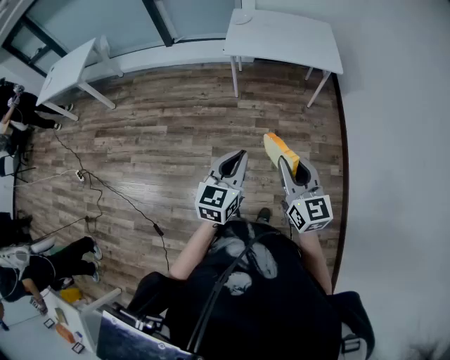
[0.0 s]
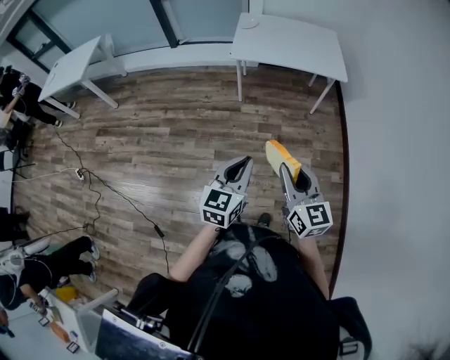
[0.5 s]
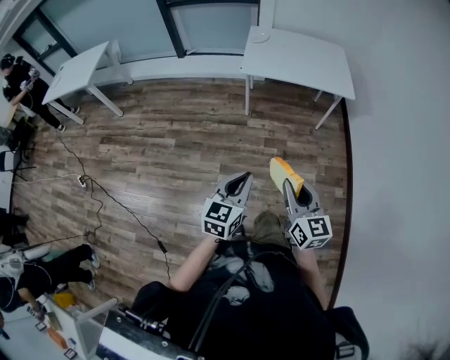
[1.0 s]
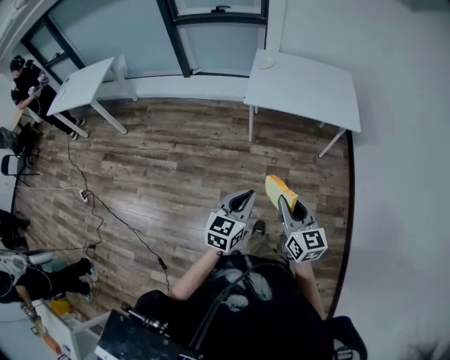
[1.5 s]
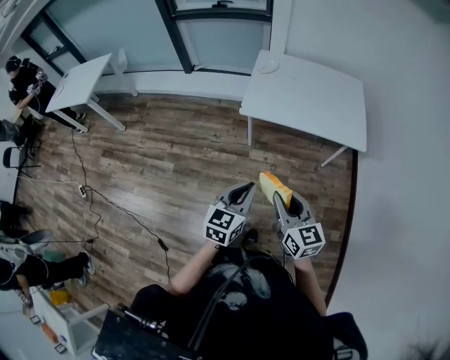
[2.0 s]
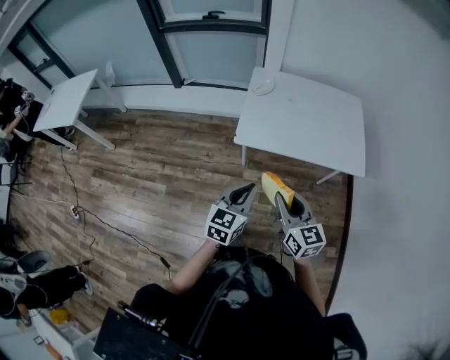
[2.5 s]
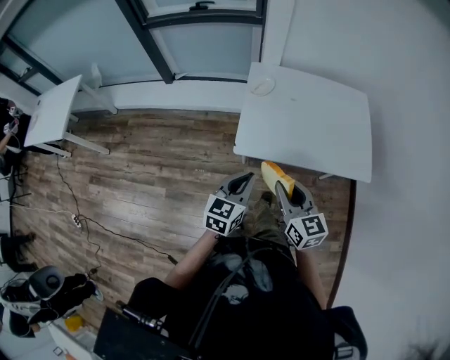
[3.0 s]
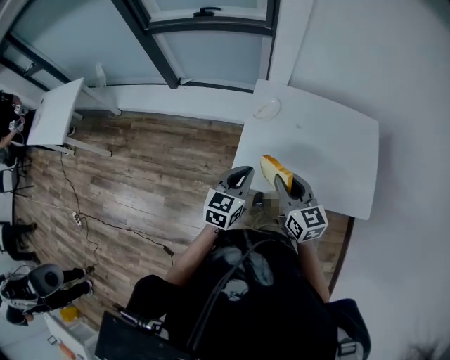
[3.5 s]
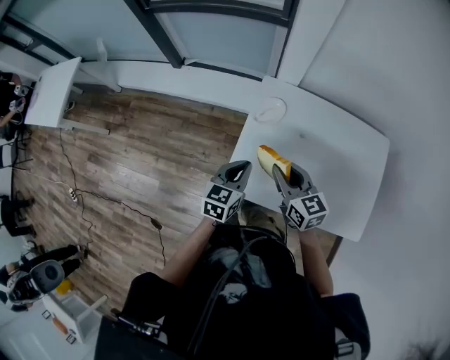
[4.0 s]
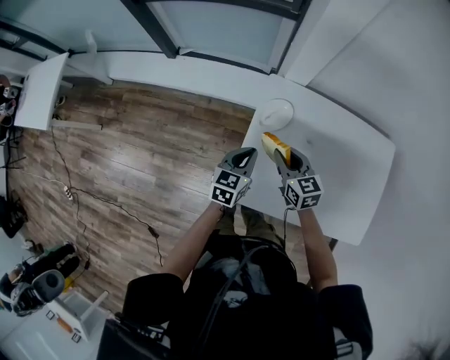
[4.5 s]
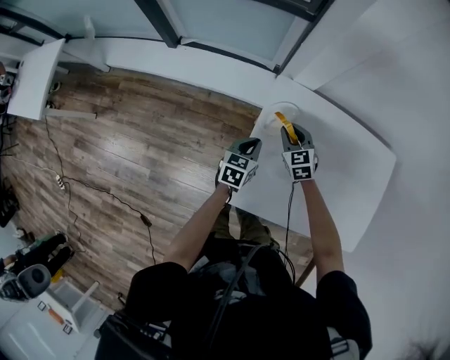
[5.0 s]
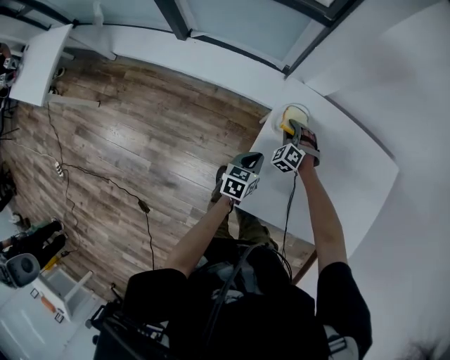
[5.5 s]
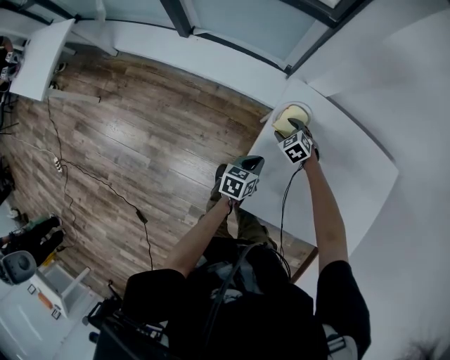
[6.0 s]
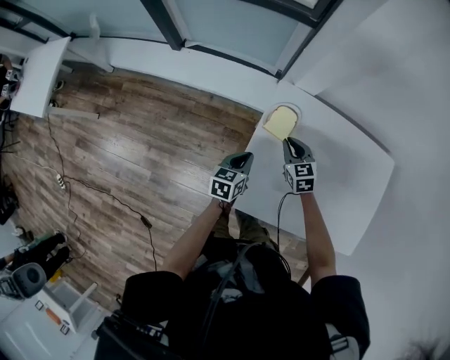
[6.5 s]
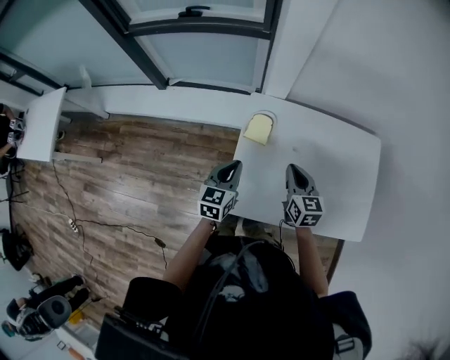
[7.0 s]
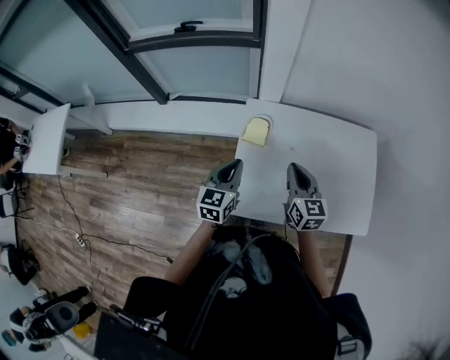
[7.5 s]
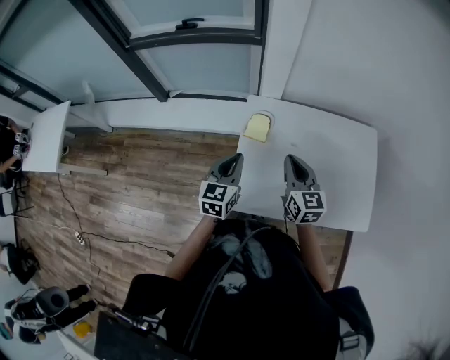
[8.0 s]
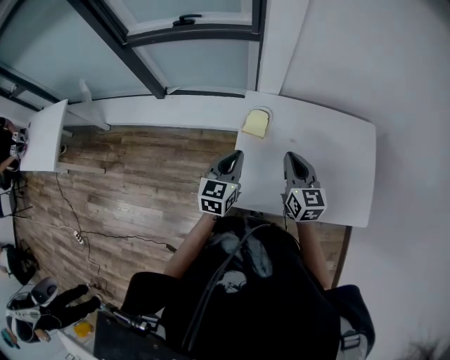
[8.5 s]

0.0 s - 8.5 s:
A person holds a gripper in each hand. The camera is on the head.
0.0 s - 2.0 s: Both grippers move forward, roughly 30 cm.
2.0 s - 4.0 s: The two grippers travel together, forward, some 60 cm.
4.0 s - 6.5 s: Both grippers travel together downward and forward, some 20 cm. The right gripper rotates some 30 degrees, and opens, then closes once more.
6.5 s - 8.5 s: The right gripper travels upward and backward by roughly 25 cm, and turns by approximately 30 degrees. Meanwhile the left gripper goes approximately 20 cm upward, and swivels approximately 30 degrees.

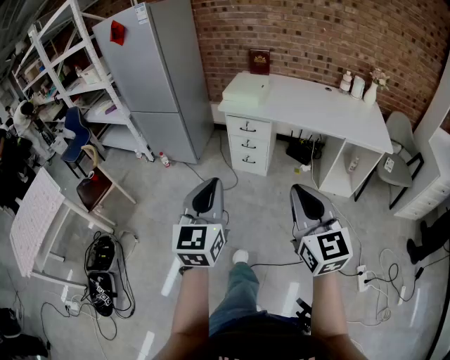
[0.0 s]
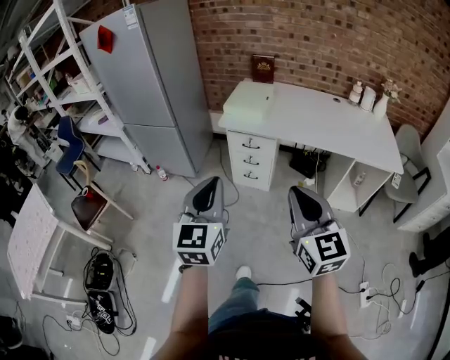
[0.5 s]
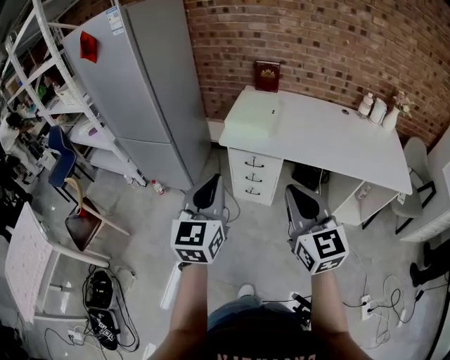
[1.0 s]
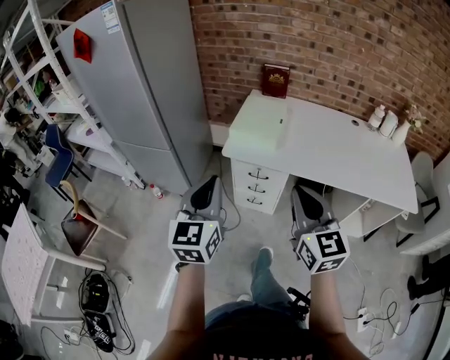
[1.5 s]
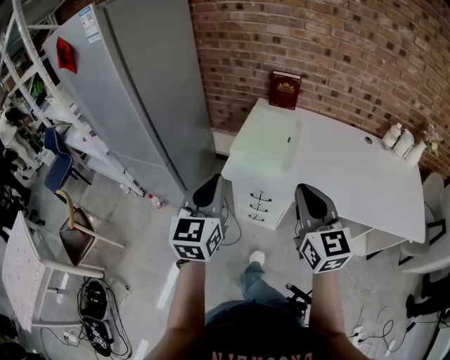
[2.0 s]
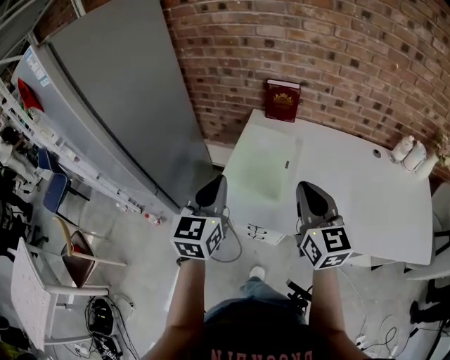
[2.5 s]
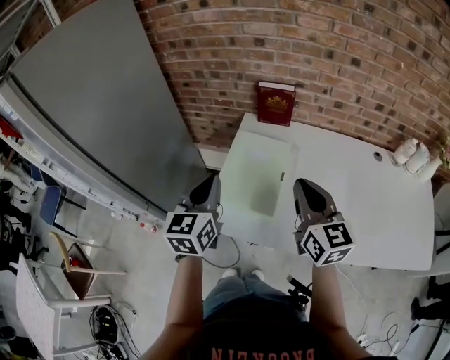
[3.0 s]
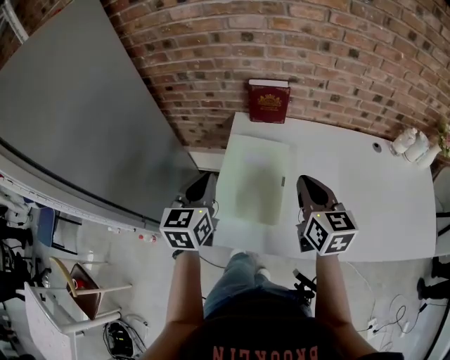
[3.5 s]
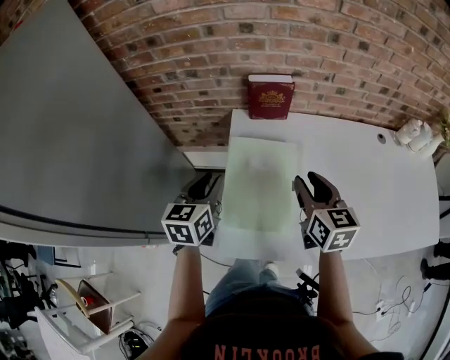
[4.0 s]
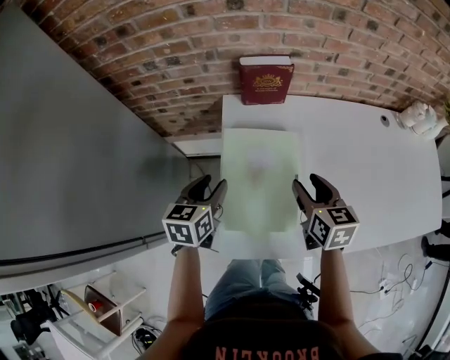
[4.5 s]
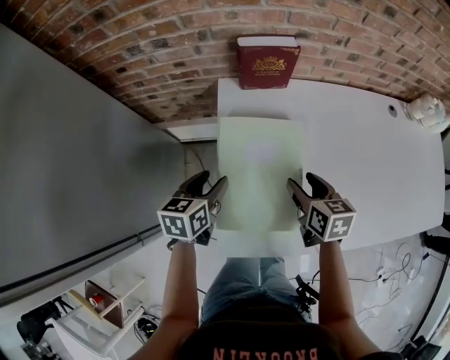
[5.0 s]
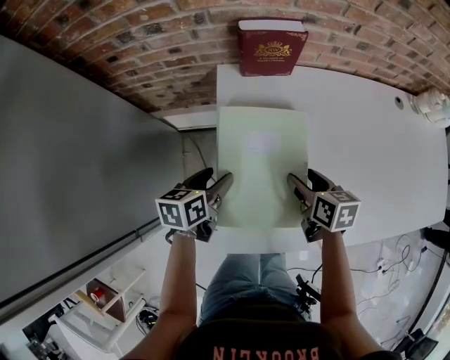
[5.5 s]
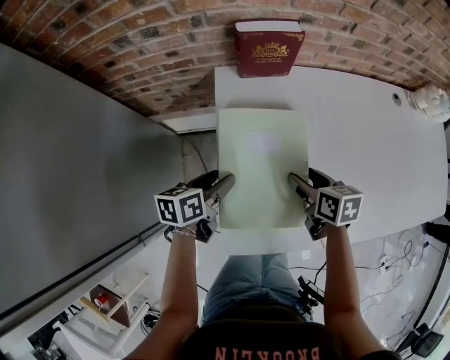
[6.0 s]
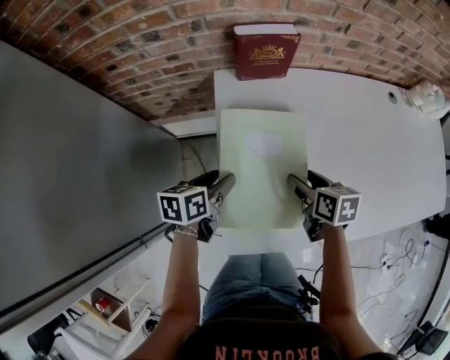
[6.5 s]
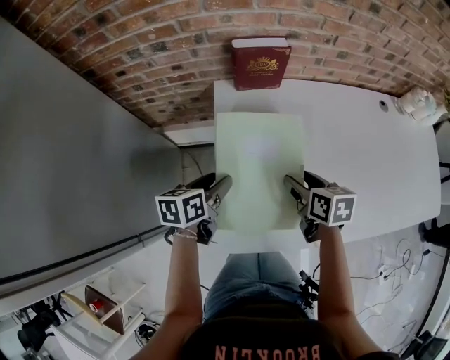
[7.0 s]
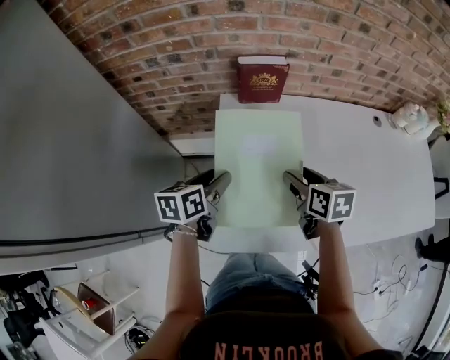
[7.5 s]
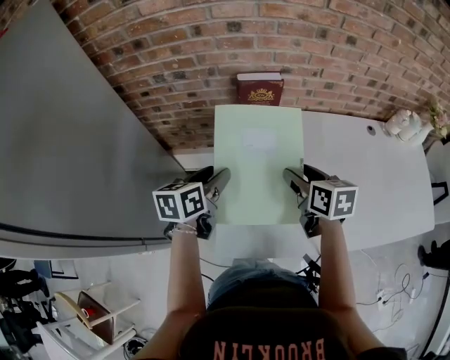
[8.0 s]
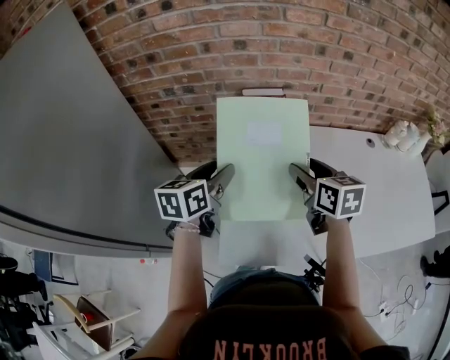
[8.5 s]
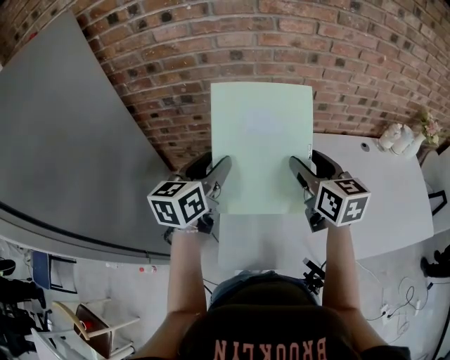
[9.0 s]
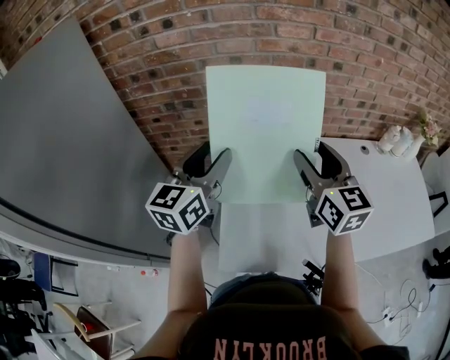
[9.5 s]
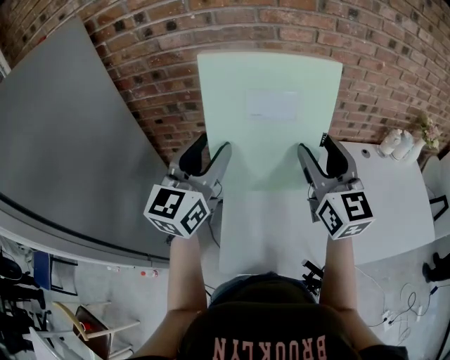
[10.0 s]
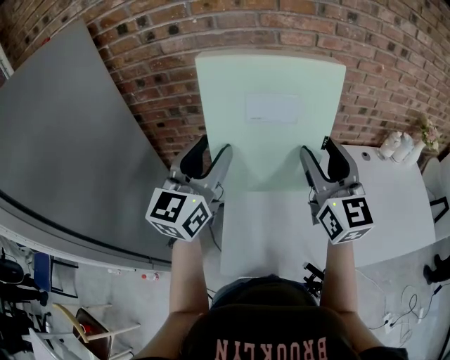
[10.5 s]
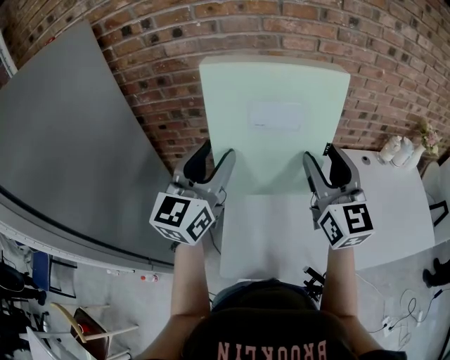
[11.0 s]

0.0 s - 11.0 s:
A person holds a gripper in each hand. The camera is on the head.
0.0 s - 2.0 s: Both grippers are carried forward, approximately 60 cm.
2.0 s - 3.5 s: Both grippers move forward, about 35 cm. The right gripper changes its angle by approximately 20 degrees.
3.5 s - 5.5 s: Both grippers move downward, roughly 20 cm. The left gripper rotates roughly 40 degrees, and opens its fingers. The right gripper turns by roughly 40 degrees, and opens.
5.5 s - 7.5 s: Both grippers travel together upward, some 10 cm.
7.5 s - 9.0 s: Both grippers move upward, roughly 20 cm. The left gripper rotates some 30 degrees. Meanwhile the right gripper swivels roughly 30 degrees.
9.0 s - 11.0 s: The two grippers go some 10 cm upward. The left gripper rotates approximately 30 degrees; the right gripper rotates some 30 degrees.

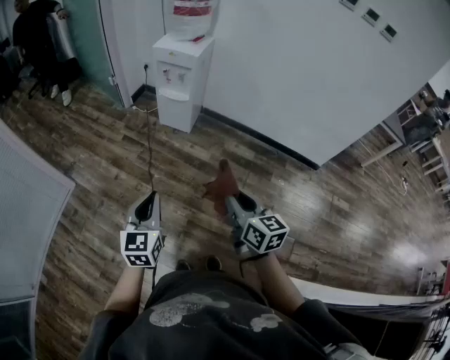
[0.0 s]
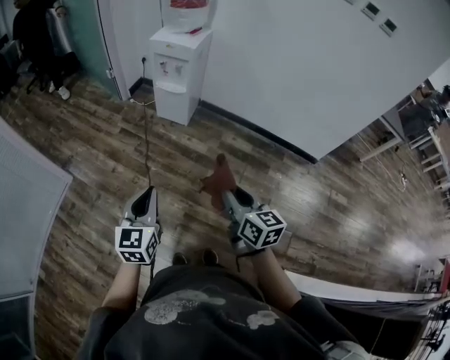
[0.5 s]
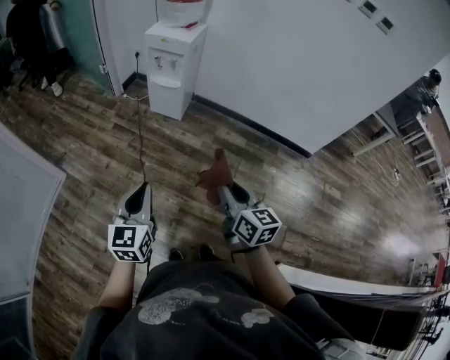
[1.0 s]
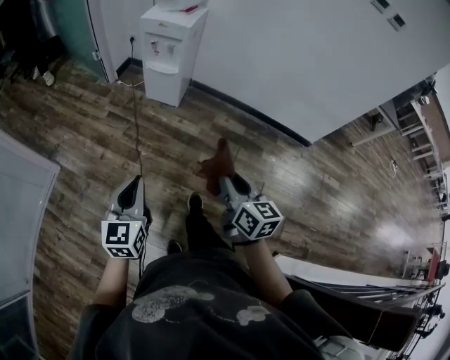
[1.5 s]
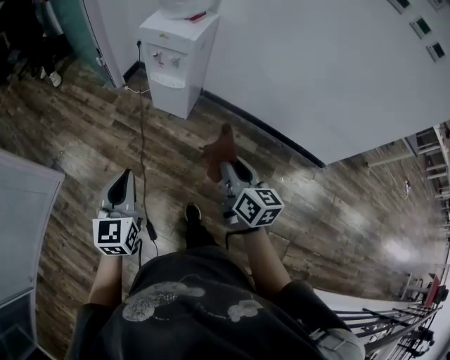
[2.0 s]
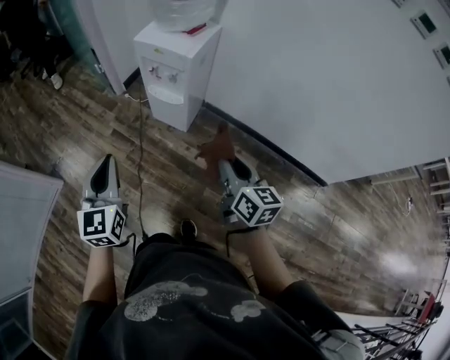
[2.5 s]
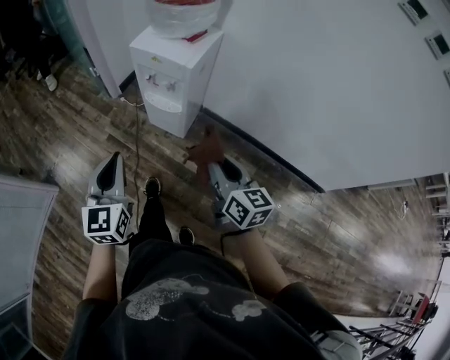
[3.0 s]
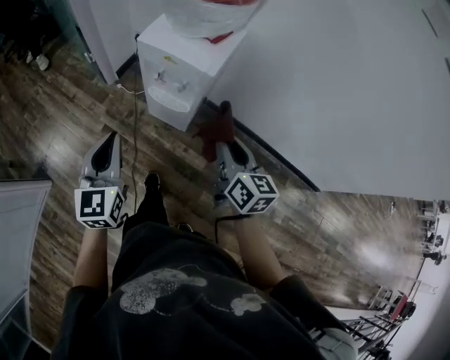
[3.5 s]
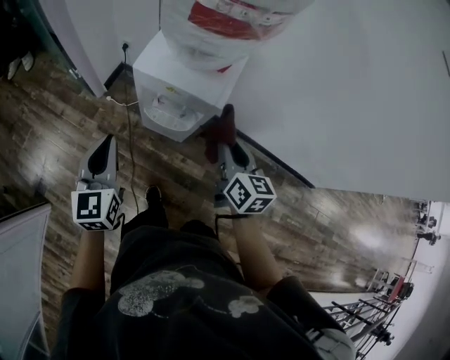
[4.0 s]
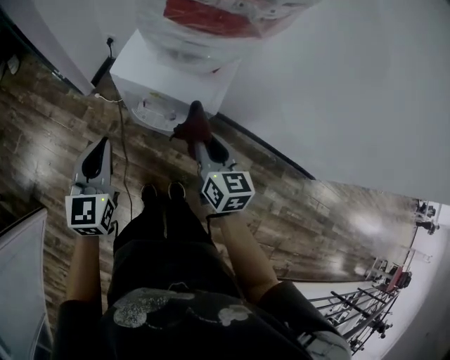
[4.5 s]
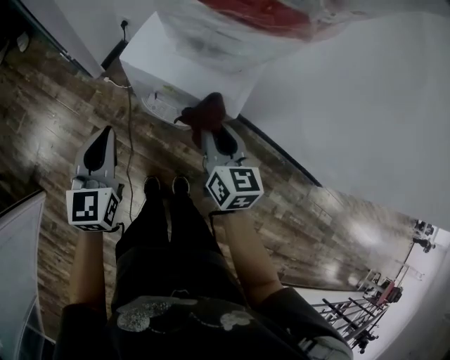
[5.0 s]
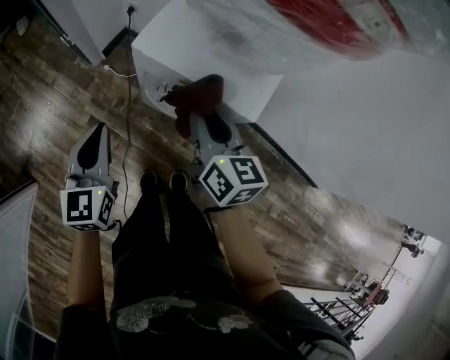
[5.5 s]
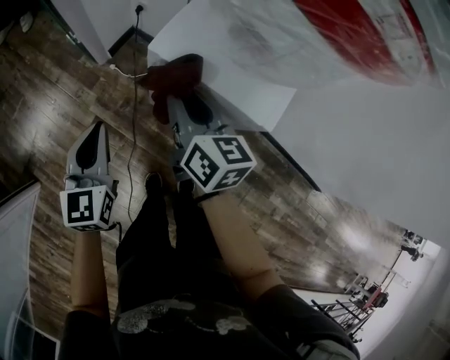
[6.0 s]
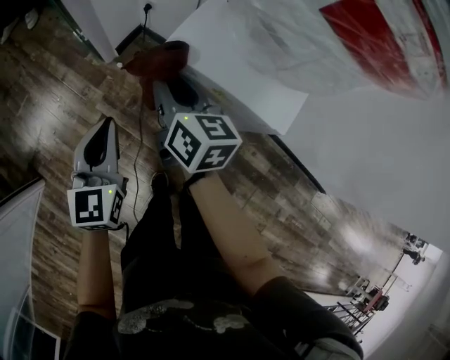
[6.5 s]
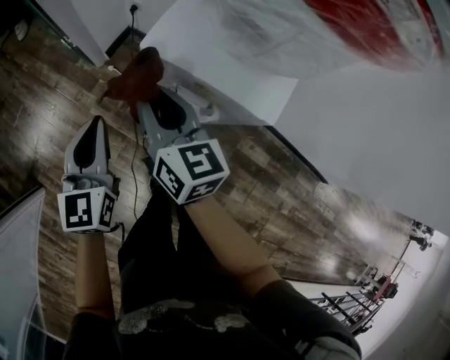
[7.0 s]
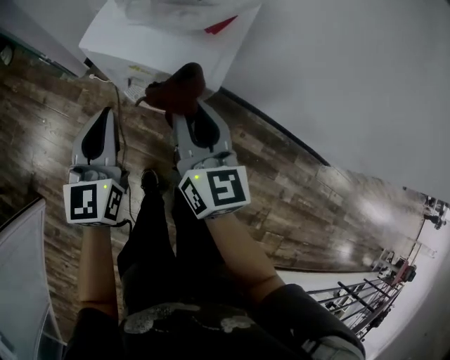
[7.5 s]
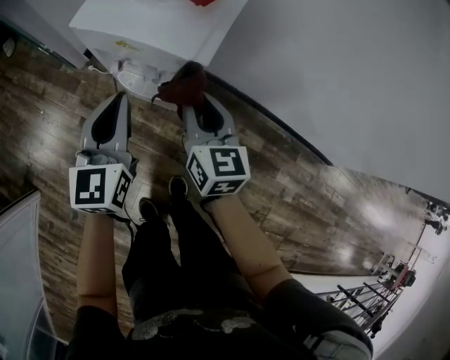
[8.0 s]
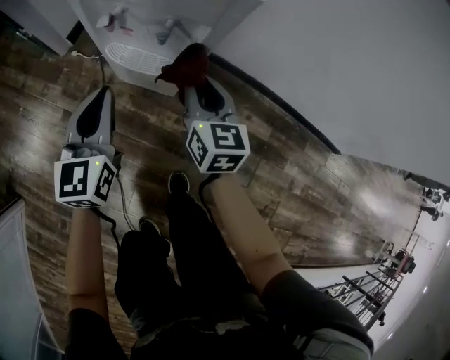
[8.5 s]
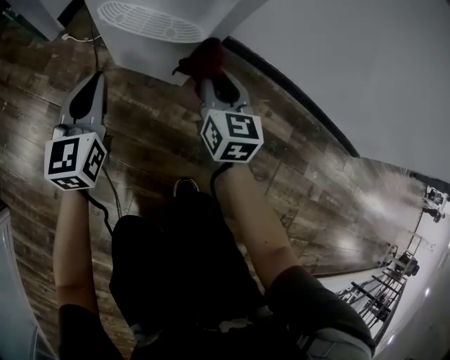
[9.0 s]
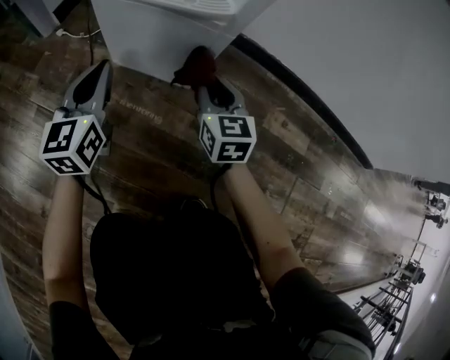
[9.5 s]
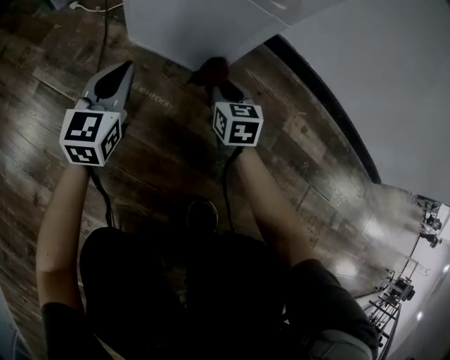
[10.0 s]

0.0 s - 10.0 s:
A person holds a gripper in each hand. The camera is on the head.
0.0 s - 2.0 s: The grippers both shift forward by approximately 20 cm.
2.0 s - 4.0 s: The two grippers travel together, forward, some 40 cm.
4.0 s - 6.0 s: The left gripper moves downward and forward, some 15 cm. Meanwhile the right gripper goes about 25 cm to the left and forward.
6.0 s - 8.0 s: The left gripper goes approximately 20 cm to the right. Meanwhile the right gripper goes some 20 cm to the right and backward.
8.0 s - 10.0 s: The two grippers go approximately 60 cm downward. The right gripper turns by roughly 20 degrees.
